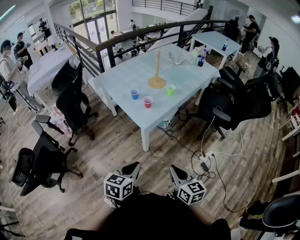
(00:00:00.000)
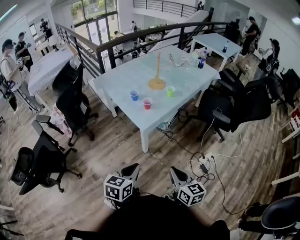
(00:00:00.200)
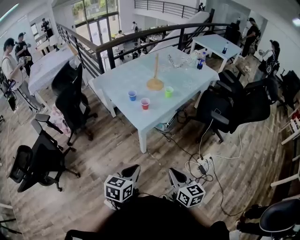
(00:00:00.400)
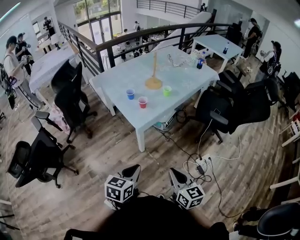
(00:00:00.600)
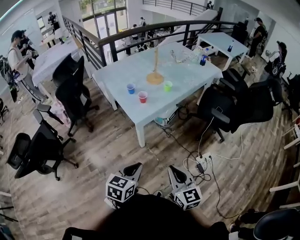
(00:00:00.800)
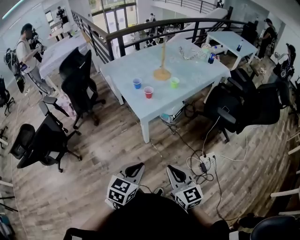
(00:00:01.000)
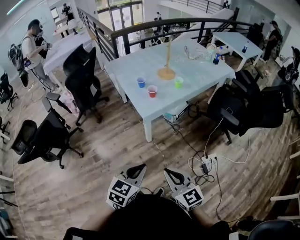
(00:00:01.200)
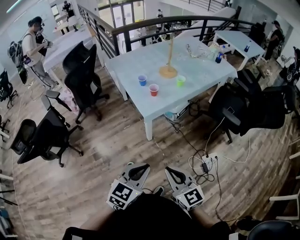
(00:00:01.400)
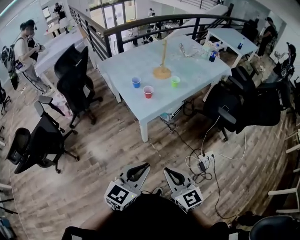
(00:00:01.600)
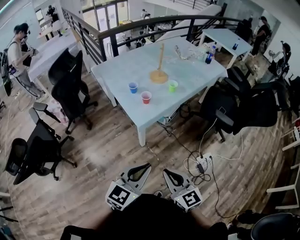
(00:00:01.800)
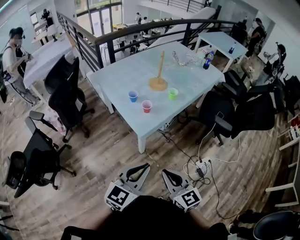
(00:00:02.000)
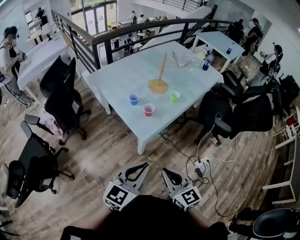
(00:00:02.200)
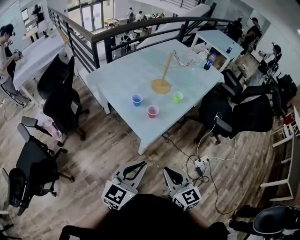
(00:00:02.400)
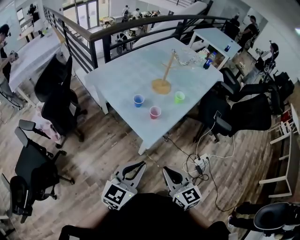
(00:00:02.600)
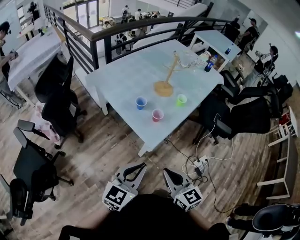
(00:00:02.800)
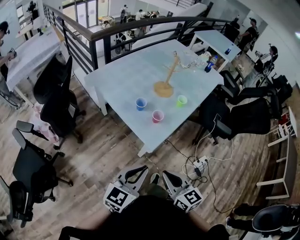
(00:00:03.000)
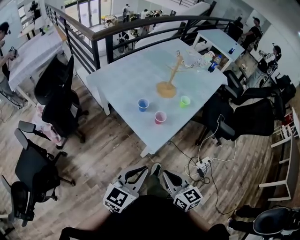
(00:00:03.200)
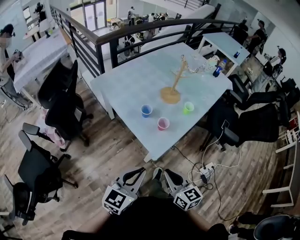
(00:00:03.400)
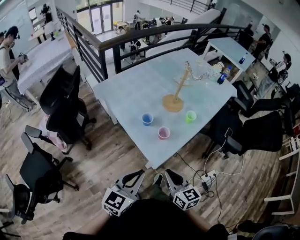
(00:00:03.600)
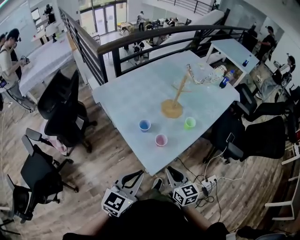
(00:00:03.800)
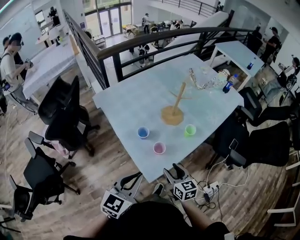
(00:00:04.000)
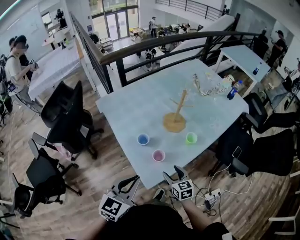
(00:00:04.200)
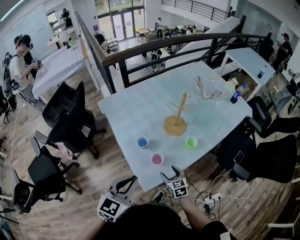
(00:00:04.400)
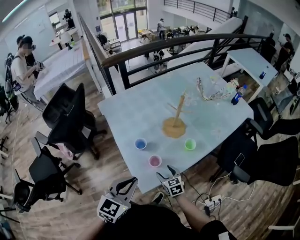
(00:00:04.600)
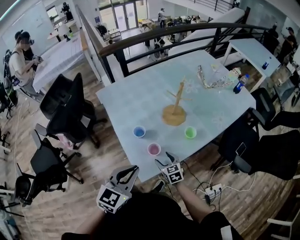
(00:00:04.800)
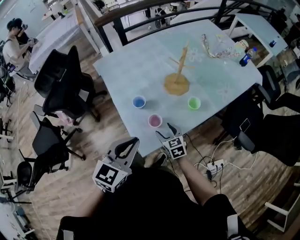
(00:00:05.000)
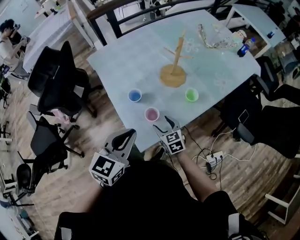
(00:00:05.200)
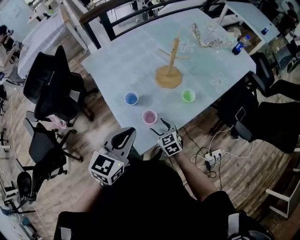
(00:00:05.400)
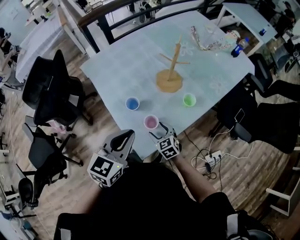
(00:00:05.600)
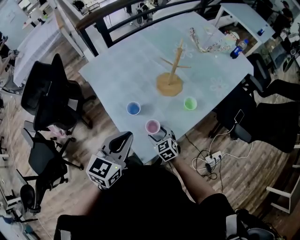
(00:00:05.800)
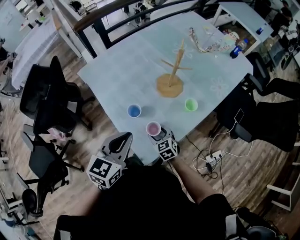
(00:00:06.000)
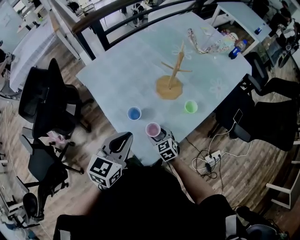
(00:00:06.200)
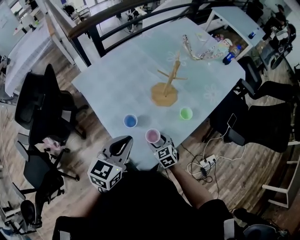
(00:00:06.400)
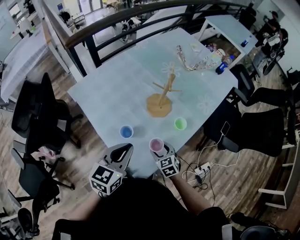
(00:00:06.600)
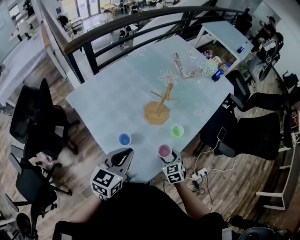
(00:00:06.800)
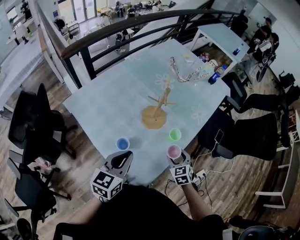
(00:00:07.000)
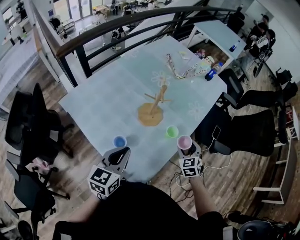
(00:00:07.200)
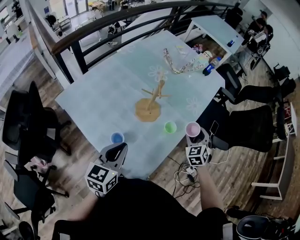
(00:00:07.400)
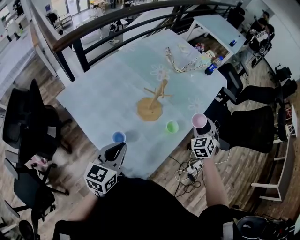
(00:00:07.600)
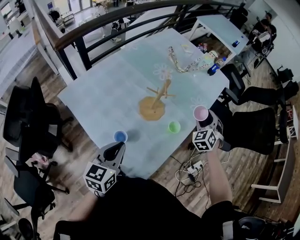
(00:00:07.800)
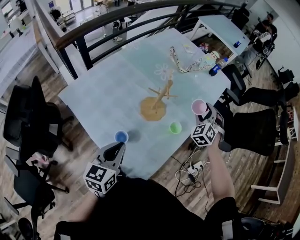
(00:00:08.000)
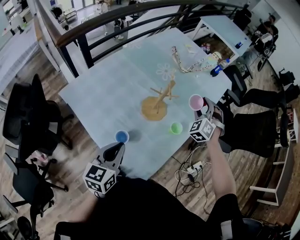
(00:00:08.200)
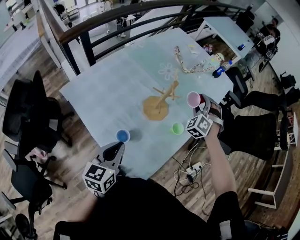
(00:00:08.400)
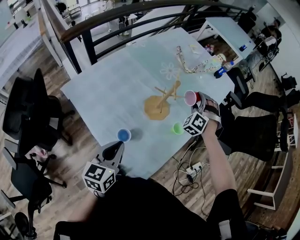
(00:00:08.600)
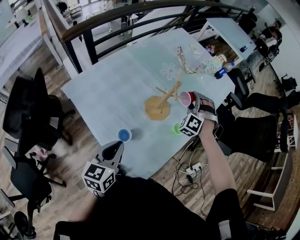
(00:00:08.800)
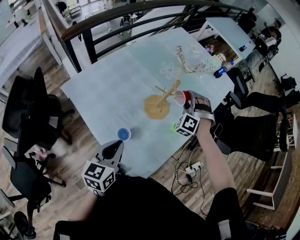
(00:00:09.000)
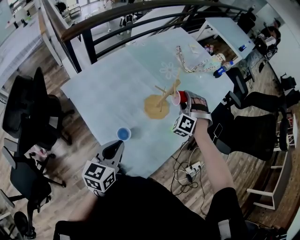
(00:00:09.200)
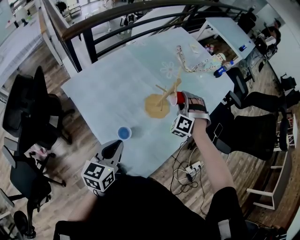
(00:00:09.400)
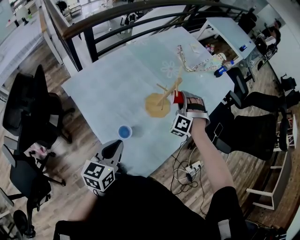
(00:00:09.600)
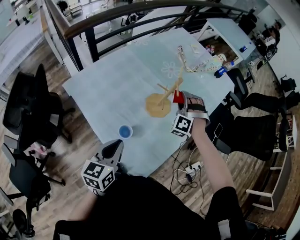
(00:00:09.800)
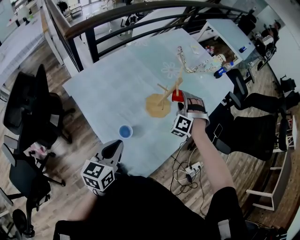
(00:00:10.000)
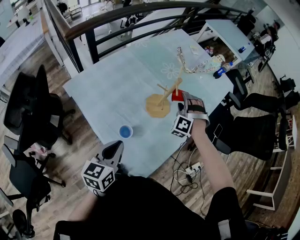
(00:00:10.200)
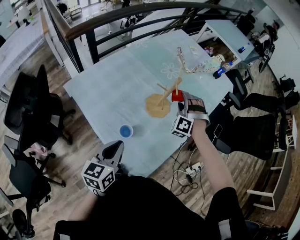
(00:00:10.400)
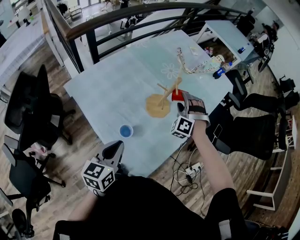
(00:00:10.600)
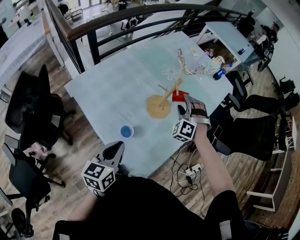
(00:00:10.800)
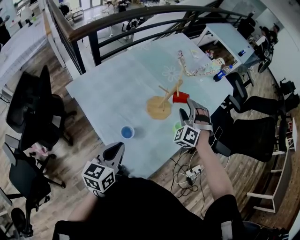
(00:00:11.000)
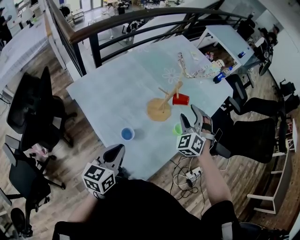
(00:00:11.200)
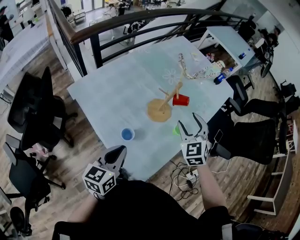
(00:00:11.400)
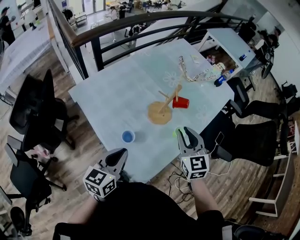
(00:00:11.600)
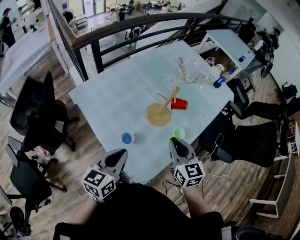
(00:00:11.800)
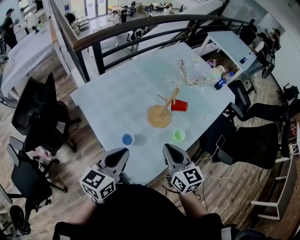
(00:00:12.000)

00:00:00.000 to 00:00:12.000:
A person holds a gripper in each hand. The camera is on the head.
00:00:00.000 to 00:00:01.600: The left gripper shifts about 10 cm to the right, and rotates some 20 degrees, while the right gripper changes its angle by some 30 degrees.
00:00:01.600 to 00:00:03.000: The grippers both shift to the left and forward by roughly 30 cm. The right gripper swivels roughly 20 degrees.
00:00:03.000 to 00:00:04.400: The left gripper heads forward, covering roughly 20 cm, and changes its angle by roughly 20 degrees. The right gripper shifts some 40 cm forward and downward, rotates roughly 20 degrees, and opens its fingers.
00:00:04.400 to 00:00:06.000: The left gripper goes about 10 cm forward; the right gripper is displaced forward, downward and to the left by approximately 10 cm.
00:00:06.000 to 00:00:07.600: The left gripper ends up some 10 cm from where it was; the right gripper shifts by some 40 cm, and rotates some 50 degrees.
00:00:07.600 to 00:00:09.000: The right gripper heads to the left, covering approximately 15 cm, and twists about 40 degrees counterclockwise, seen from behind.
00:00:09.000 to 00:00:10.400: The grippers move only a little.
00:00:10.400 to 00:00:12.000: The left gripper travels upward by approximately 5 cm, while the right gripper heads backward and upward, covering roughly 25 cm, rotates around the line of its fingers by about 90 degrees, clockwise from behind, and closes.

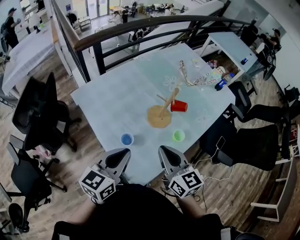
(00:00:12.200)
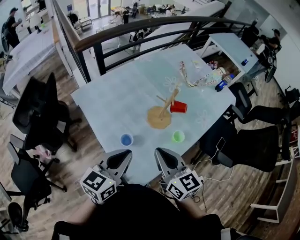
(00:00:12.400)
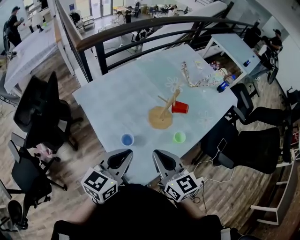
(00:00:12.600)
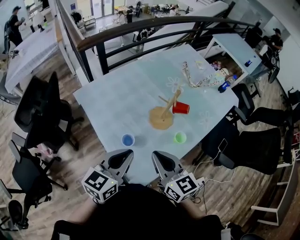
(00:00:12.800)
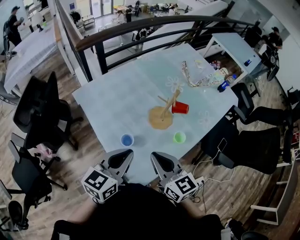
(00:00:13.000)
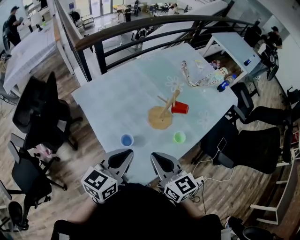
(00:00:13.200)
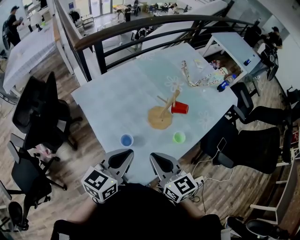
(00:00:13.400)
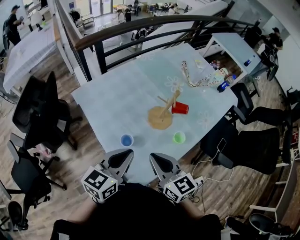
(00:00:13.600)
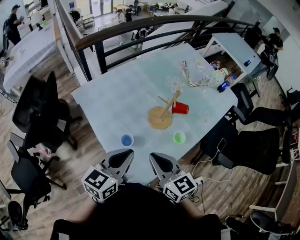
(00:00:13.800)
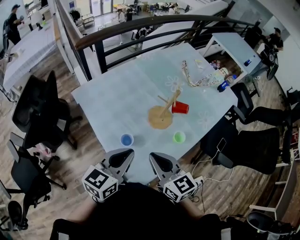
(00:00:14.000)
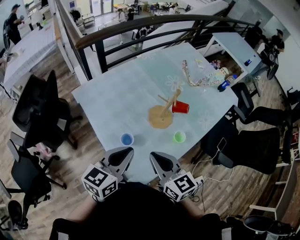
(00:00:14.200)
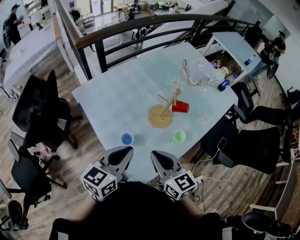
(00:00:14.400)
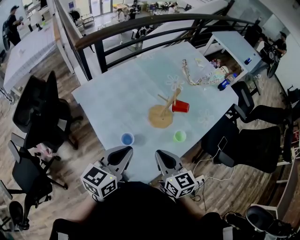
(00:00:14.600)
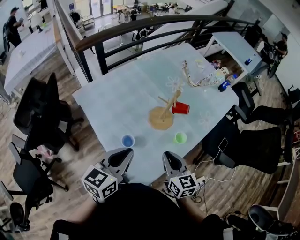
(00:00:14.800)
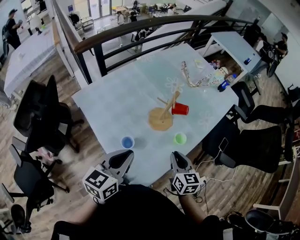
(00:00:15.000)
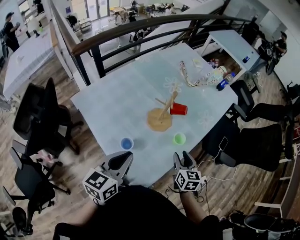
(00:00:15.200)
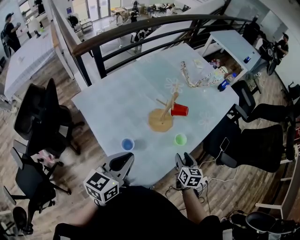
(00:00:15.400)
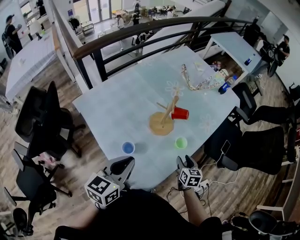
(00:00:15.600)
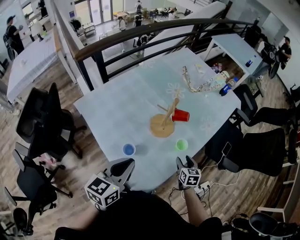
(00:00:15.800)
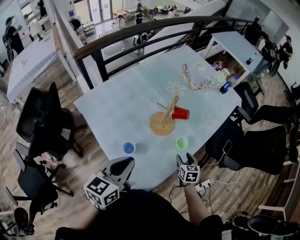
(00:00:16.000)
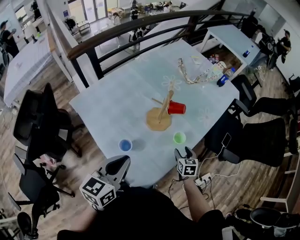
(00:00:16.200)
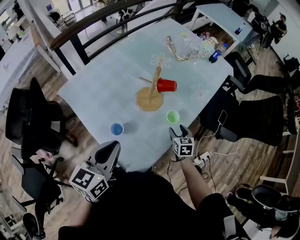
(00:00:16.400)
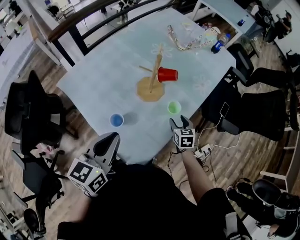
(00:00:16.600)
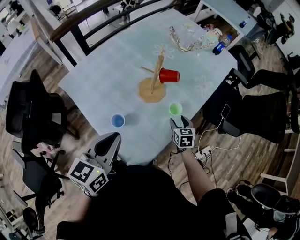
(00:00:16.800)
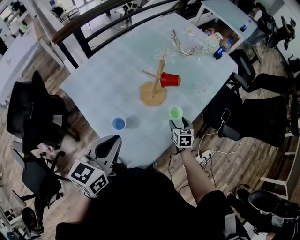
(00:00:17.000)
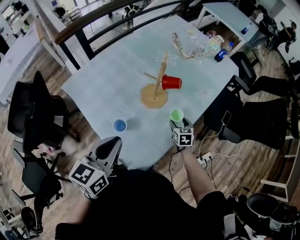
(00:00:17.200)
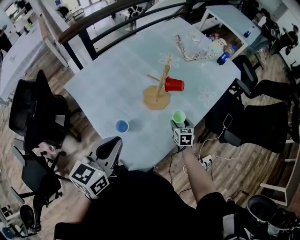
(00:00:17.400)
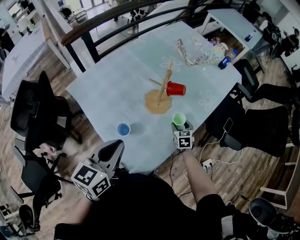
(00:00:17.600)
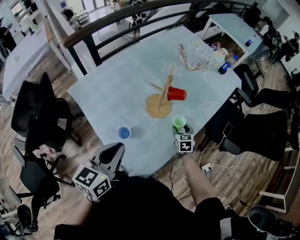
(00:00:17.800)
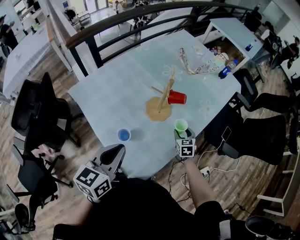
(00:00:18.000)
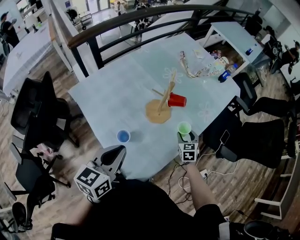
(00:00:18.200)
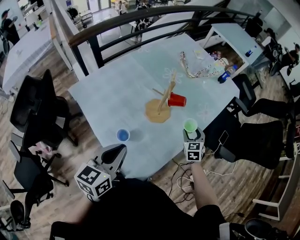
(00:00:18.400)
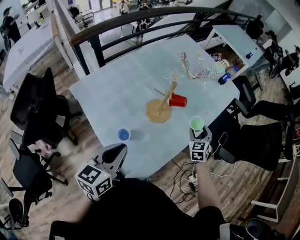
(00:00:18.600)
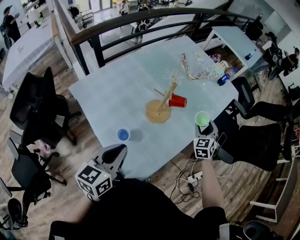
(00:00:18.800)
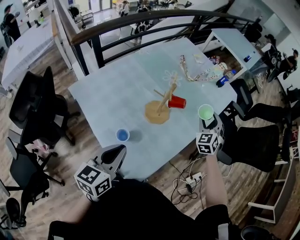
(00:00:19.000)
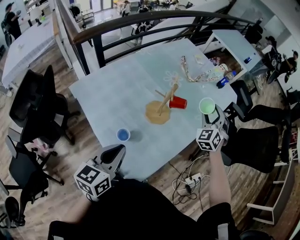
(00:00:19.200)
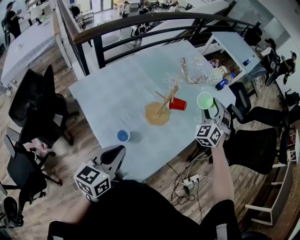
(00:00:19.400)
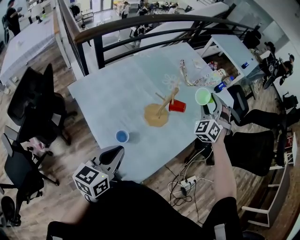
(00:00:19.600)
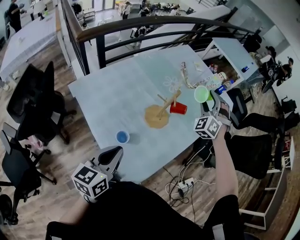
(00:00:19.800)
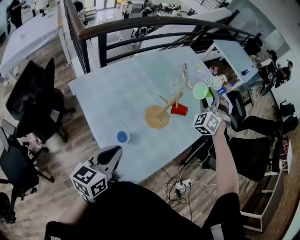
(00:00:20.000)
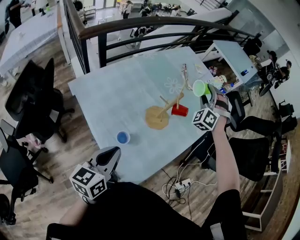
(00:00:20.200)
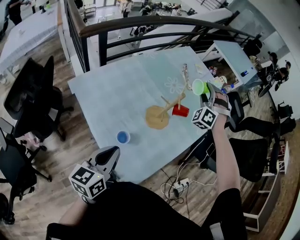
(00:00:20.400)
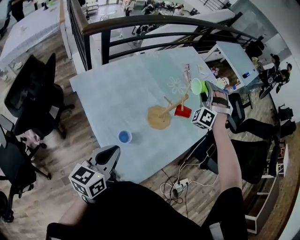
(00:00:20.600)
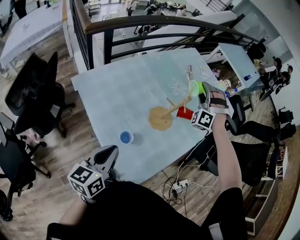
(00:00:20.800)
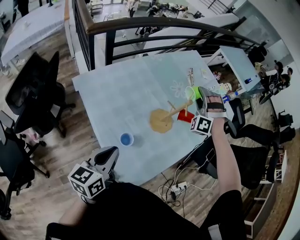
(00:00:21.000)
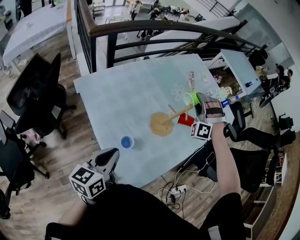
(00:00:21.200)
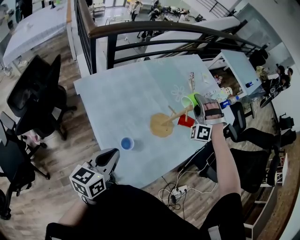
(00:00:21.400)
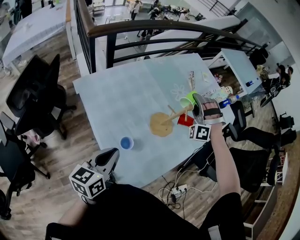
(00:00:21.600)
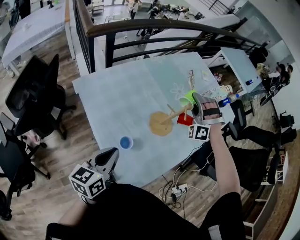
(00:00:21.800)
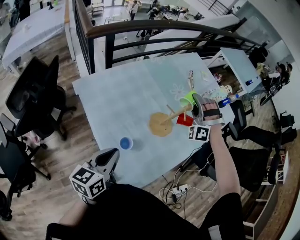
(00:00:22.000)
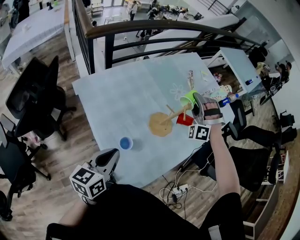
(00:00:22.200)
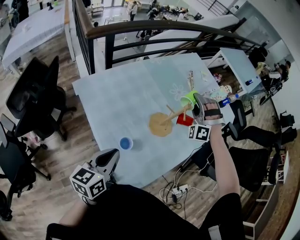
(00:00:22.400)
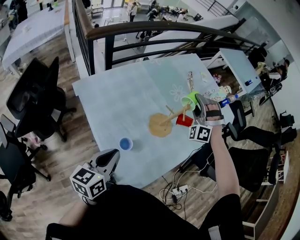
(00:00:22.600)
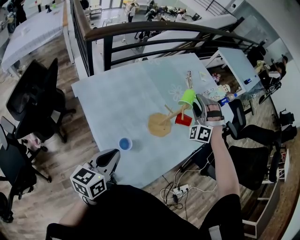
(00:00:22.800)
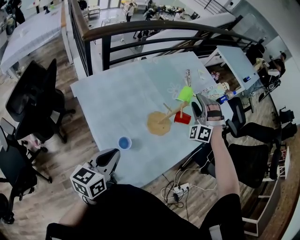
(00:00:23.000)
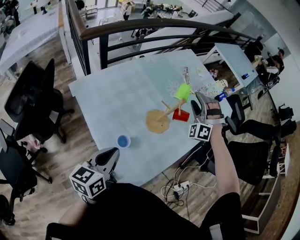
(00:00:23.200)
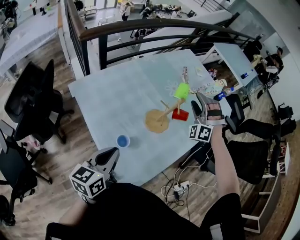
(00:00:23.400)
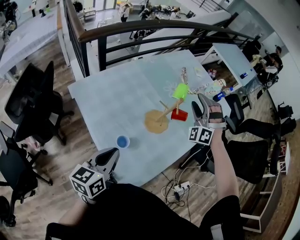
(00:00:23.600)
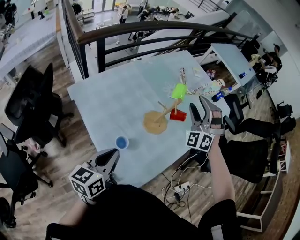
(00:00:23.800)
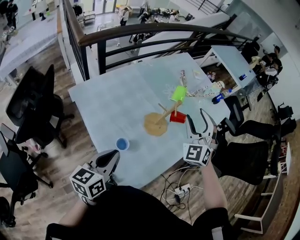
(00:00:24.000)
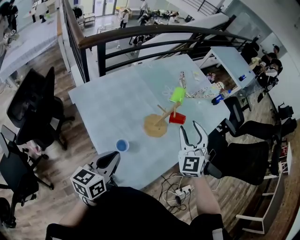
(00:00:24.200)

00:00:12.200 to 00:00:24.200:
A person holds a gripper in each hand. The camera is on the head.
00:00:12.200 to 00:00:13.800: There are only small adjustments of the grippers.
00:00:13.800 to 00:00:15.200: The right gripper heads to the right and downward, covering roughly 20 cm, swivels approximately 40 degrees, and opens up.
00:00:15.200 to 00:00:16.600: The right gripper moves downward and forward, approximately 15 cm.
00:00:16.600 to 00:00:18.200: The right gripper travels forward by some 5 cm.
00:00:18.200 to 00:00:19.800: The right gripper is displaced upward and forward by about 30 cm, and twists some 60 degrees counterclockwise, seen from behind.
00:00:19.800 to 00:00:21.200: The left gripper moves to the left, about 5 cm. The right gripper goes some 10 cm to the left, and rotates some 40 degrees.
00:00:21.200 to 00:00:22.600: The grippers make only small movements.
00:00:22.600 to 00:00:24.200: The right gripper is displaced backward by some 15 cm, and twists some 60 degrees clockwise, seen from behind.
